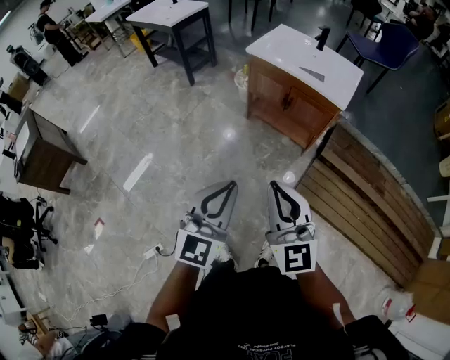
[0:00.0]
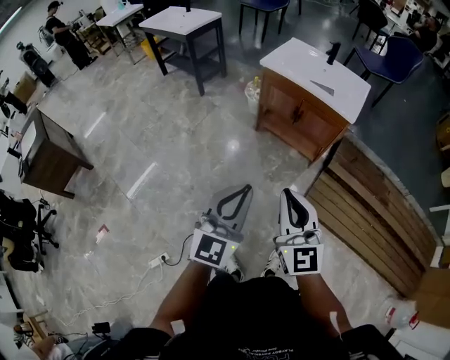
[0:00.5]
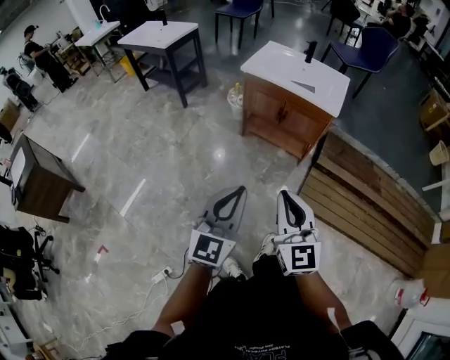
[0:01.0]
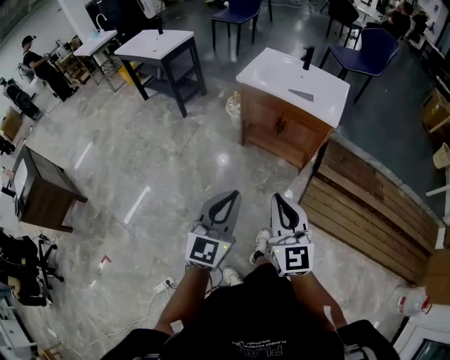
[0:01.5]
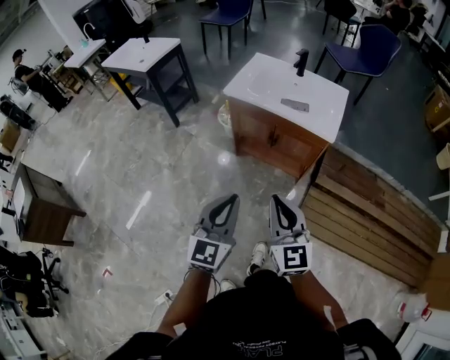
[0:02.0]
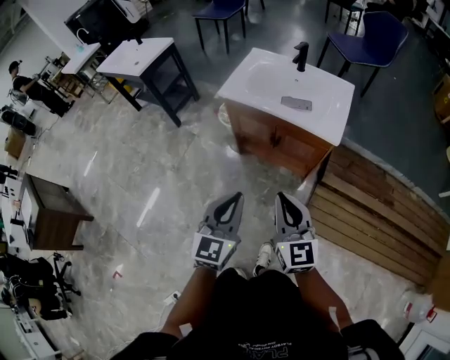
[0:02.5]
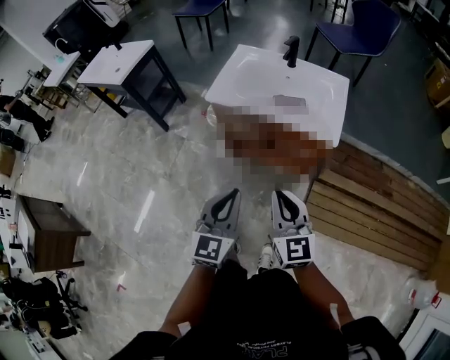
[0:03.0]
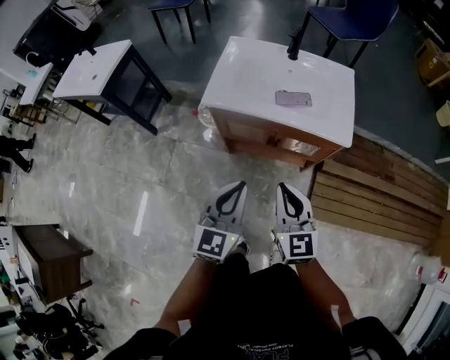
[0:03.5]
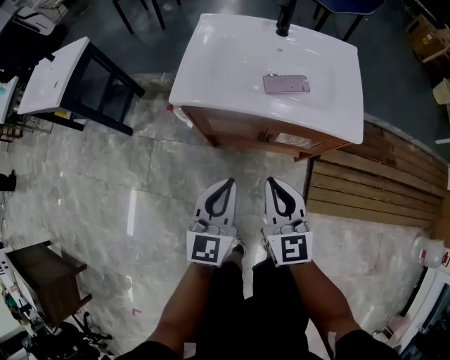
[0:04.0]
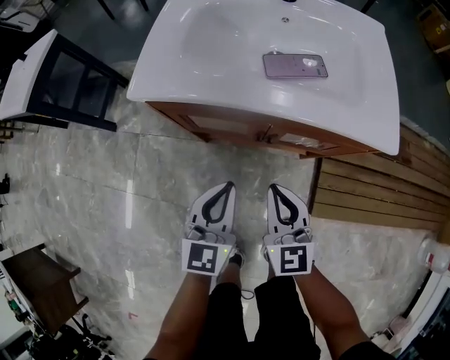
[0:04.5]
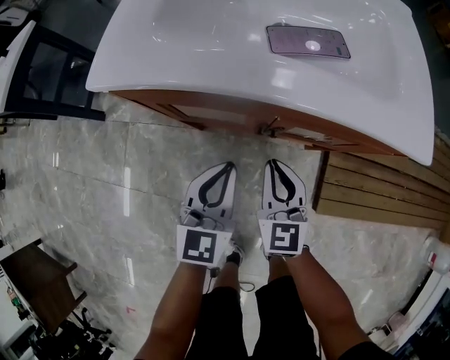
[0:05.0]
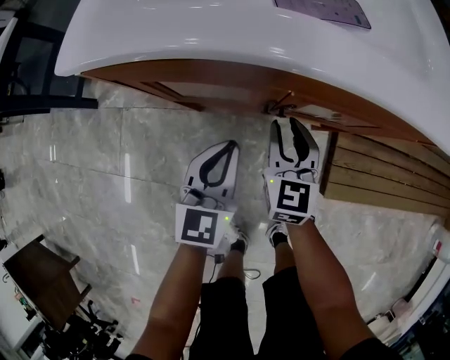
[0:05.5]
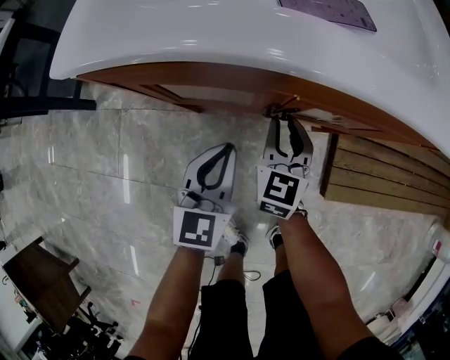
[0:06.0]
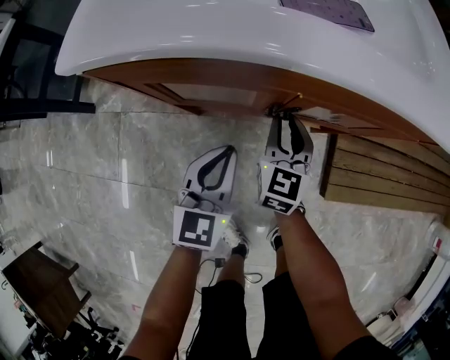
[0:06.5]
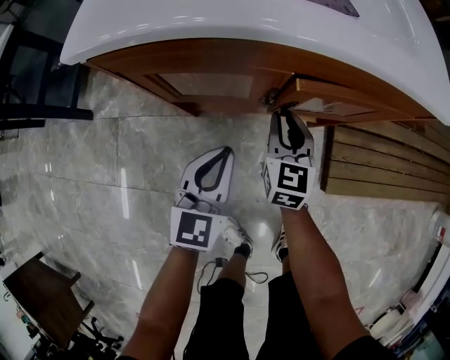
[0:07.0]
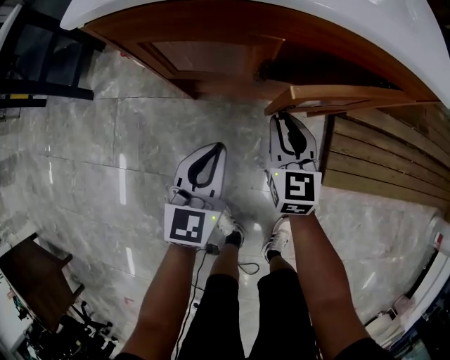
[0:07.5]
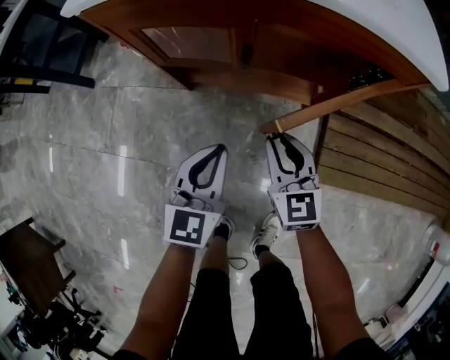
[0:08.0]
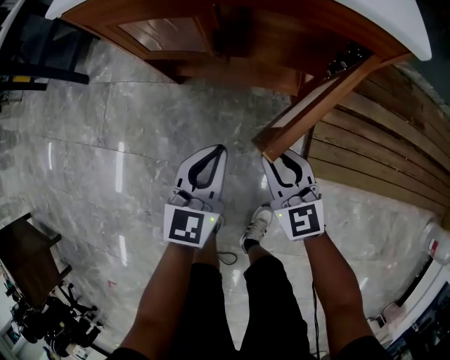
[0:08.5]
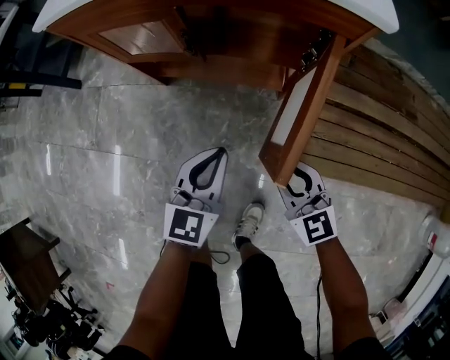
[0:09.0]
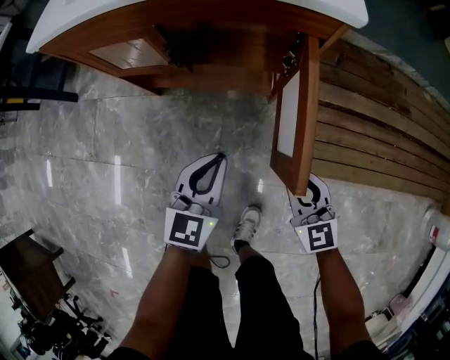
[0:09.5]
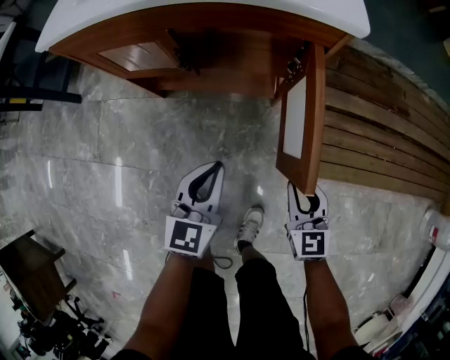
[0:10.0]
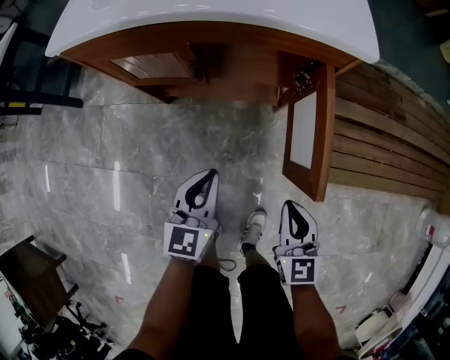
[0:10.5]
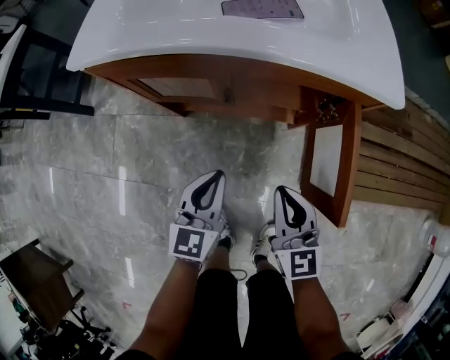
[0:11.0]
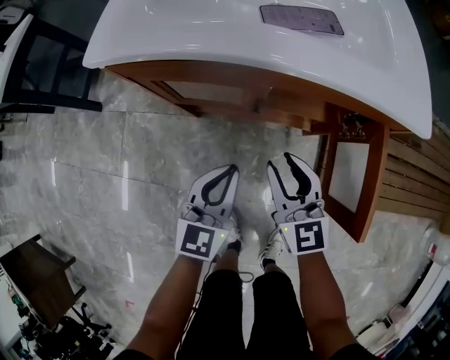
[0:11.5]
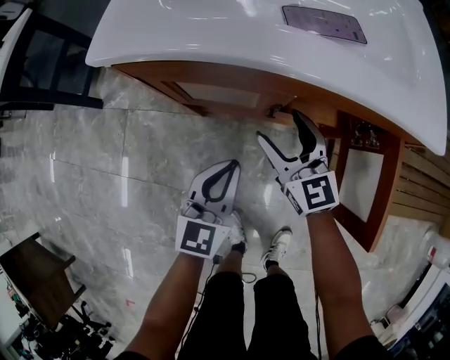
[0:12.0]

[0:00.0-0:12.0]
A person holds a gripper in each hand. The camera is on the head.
0:00.0 to 0:02.0: The grippers both shift forward by approximately 20 cm.
0:02.0 to 0:04.0: Both grippers travel together forward and downward, approximately 35 cm.
0:04.0 to 0:06.0: The right gripper goes roughly 40 cm downward and forward, and rotates about 30 degrees. The left gripper heads downward, covering some 30 cm.
0:06.0 to 0:08.0: The two grippers go approximately 15 cm backward and to the right. The right gripper turns by roughly 20 degrees.
0:08.0 to 0:10.0: The right gripper moves to the right and backward, about 25 cm, while the left gripper heads to the right and backward, covering some 15 cm.
0:10.0 to 0:12.0: The right gripper heads to the left and forward, covering about 40 cm, turns by approximately 20 degrees, and opens. Meanwhile the left gripper is displaced to the left and forward by about 20 cm.

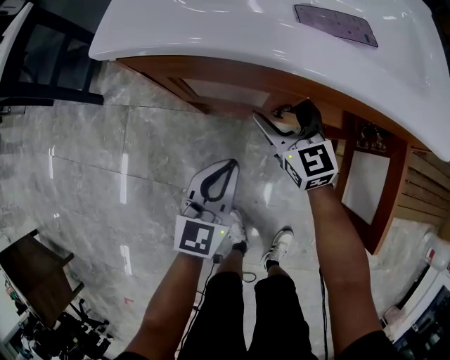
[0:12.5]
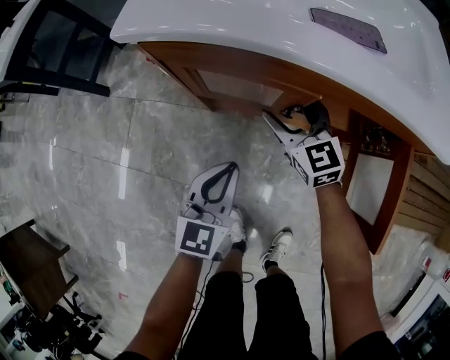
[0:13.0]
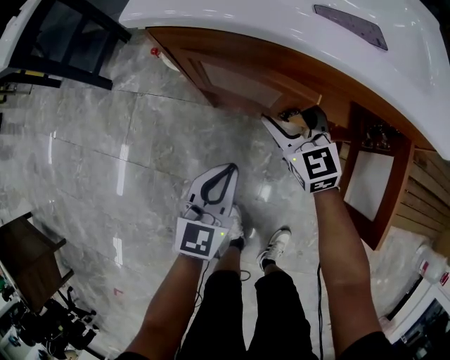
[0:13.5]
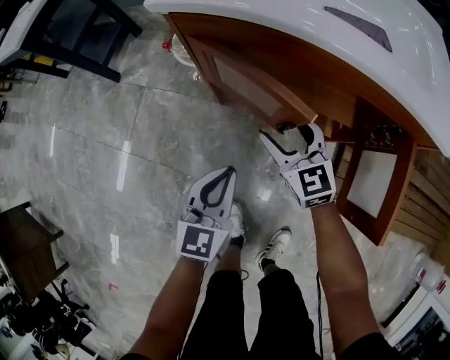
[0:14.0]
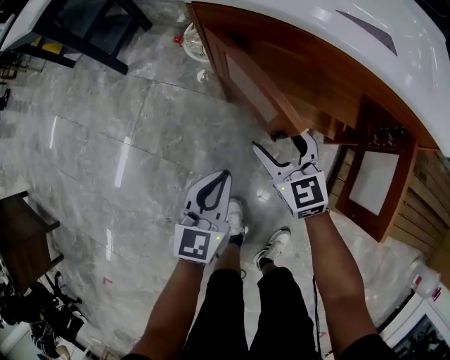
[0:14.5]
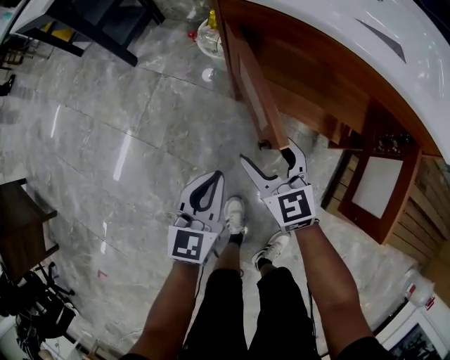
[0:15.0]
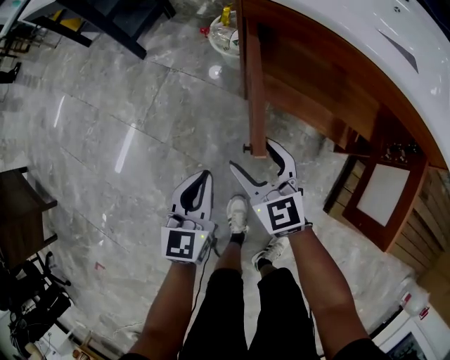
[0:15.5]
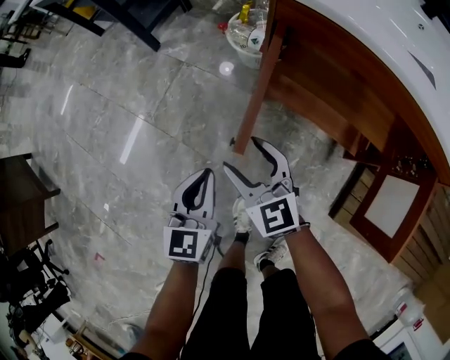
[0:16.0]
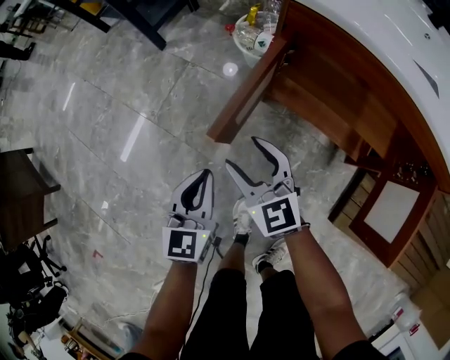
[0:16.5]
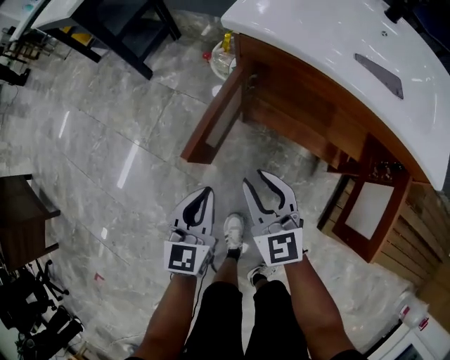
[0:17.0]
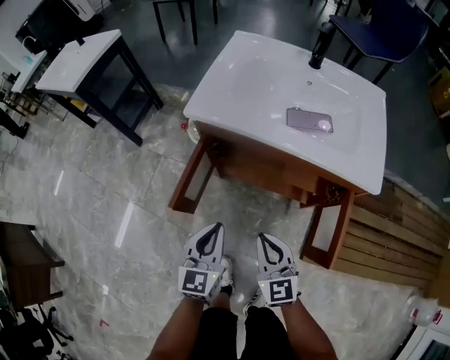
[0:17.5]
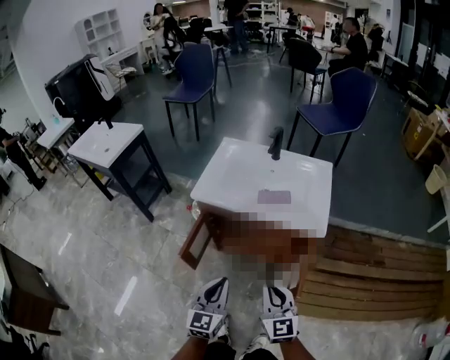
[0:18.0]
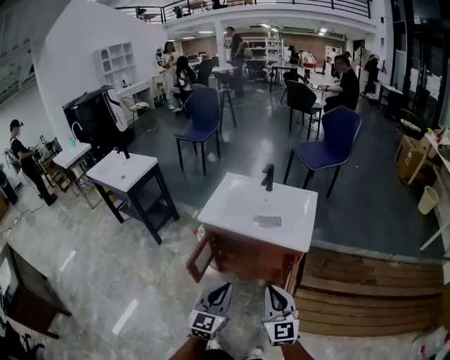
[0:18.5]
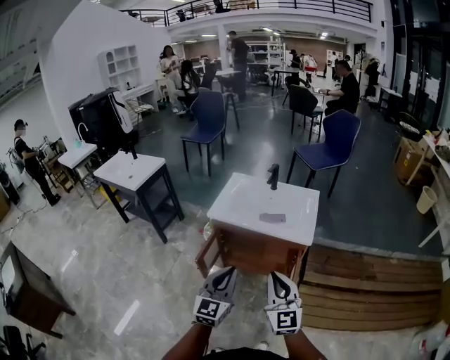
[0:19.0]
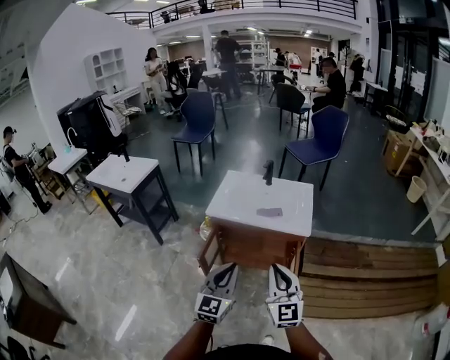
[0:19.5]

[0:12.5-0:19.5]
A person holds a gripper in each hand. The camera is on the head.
0:12.5 to 0:14.5: The grippers both shift backward and to the left by some 15 cm.
0:14.5 to 0:16.0: The grippers both shift to the left by some 15 cm.
0:16.0 to 0:17.5: The left gripper heads to the right and upward, covering some 20 cm, while the right gripper shifts some 25 cm to the right, upward and backward, swivels approximately 30 degrees, and closes up.
0:17.5 to 0:19.5: The two grippers go roughly 40 cm upward and backward. The right gripper swivels roughly 30 degrees; the left gripper swivels roughly 20 degrees.

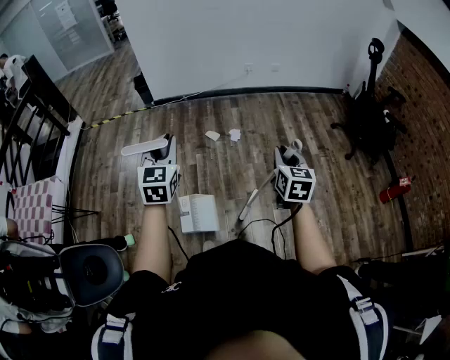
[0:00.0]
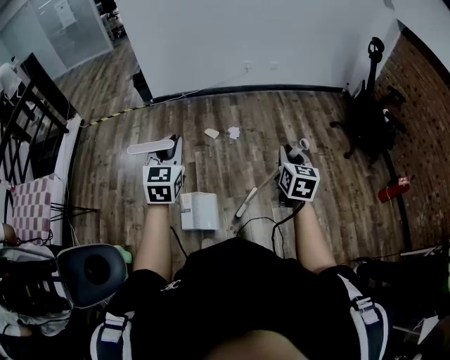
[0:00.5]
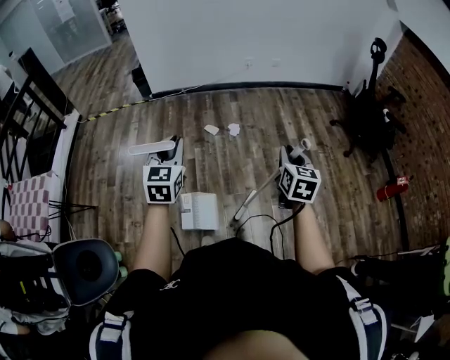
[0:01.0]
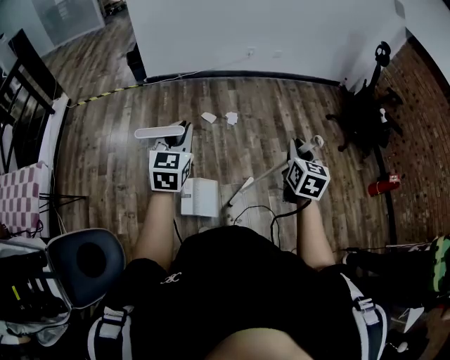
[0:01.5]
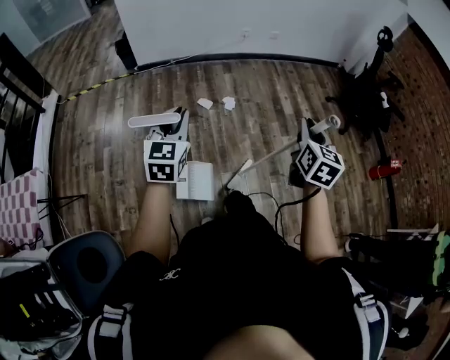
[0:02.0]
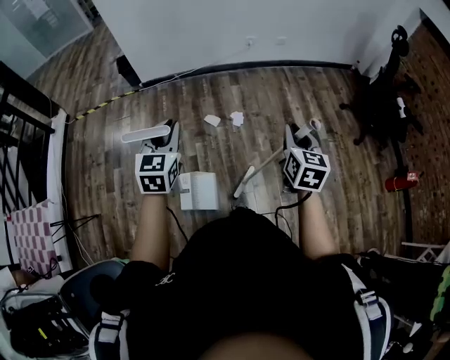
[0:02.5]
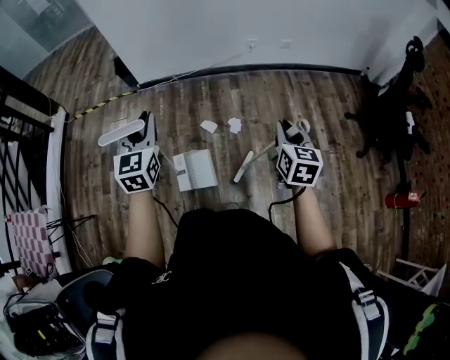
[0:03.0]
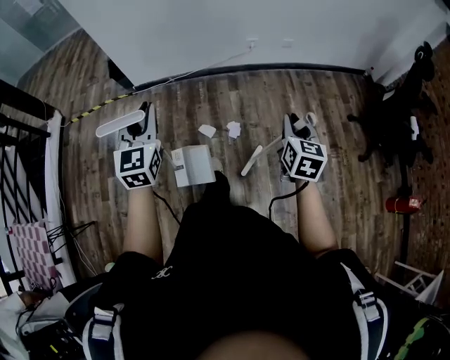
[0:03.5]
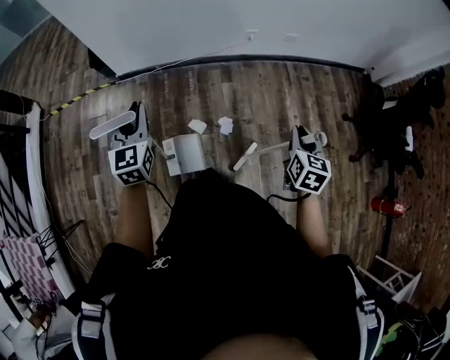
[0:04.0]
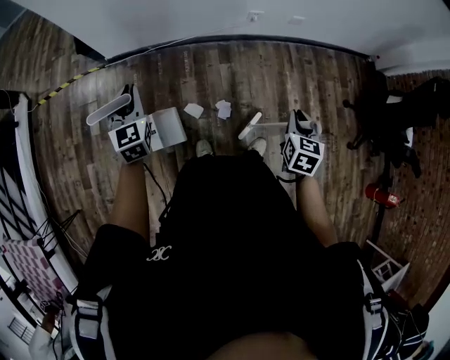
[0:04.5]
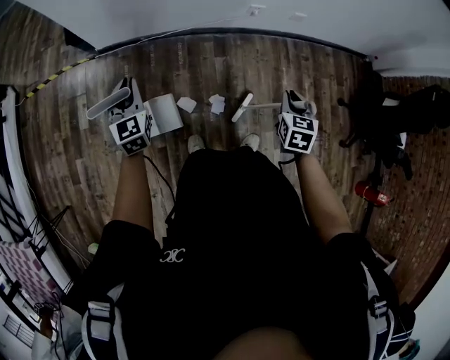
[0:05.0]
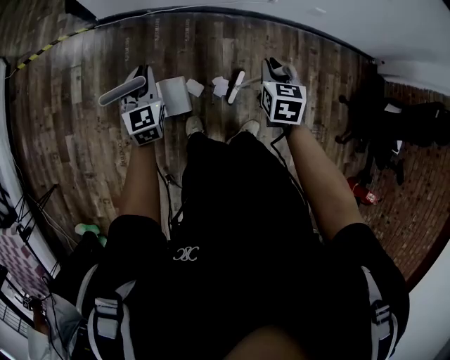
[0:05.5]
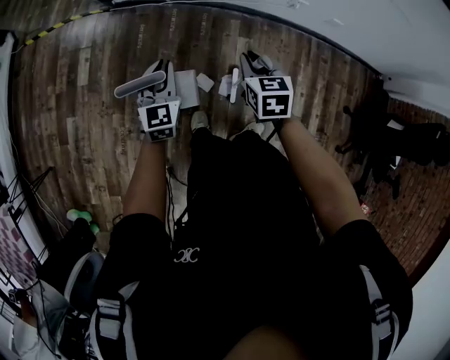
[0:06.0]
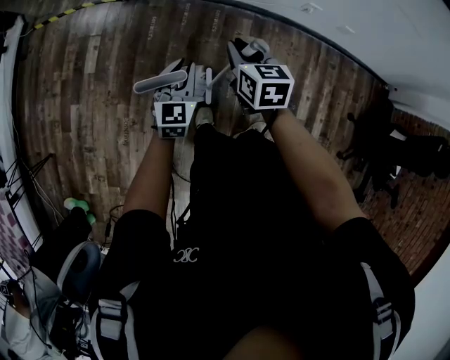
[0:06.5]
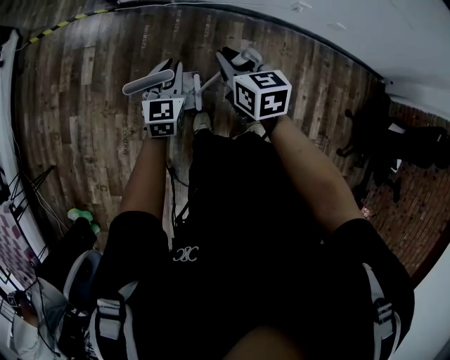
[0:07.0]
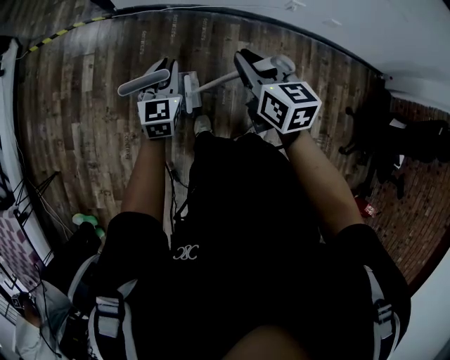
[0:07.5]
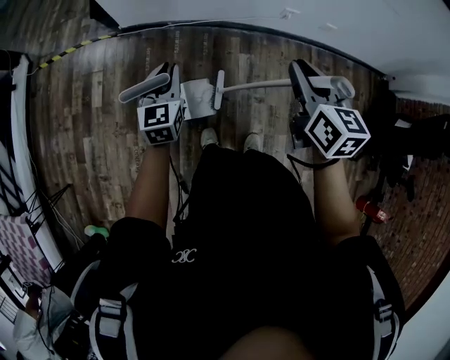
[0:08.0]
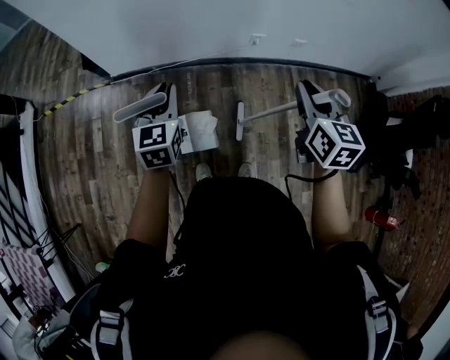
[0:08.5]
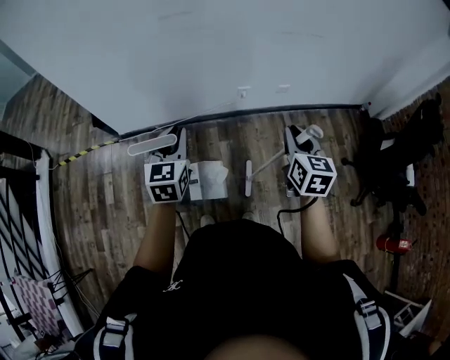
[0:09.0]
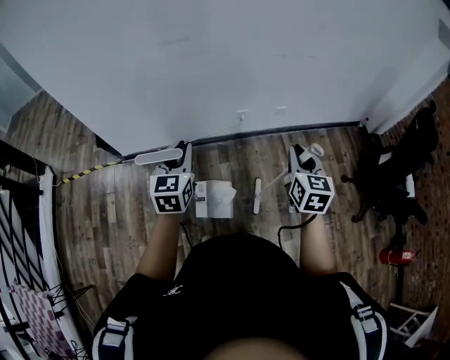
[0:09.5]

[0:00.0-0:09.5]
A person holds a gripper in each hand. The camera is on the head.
0:00.0 to 0:02.0: The left gripper travels forward, to the left and downward by some 15 cm. The right gripper goes roughly 10 cm forward and to the left.
0:02.0 to 0:04.0: The pair of grippers is taken forward, about 50 cm.
0:04.0 to 0:05.5: The left gripper heads downward and forward, covering about 25 cm, while the right gripper is displaced forward, to the left and downward by about 30 cm, and rotates some 30 degrees.
0:05.5 to 0:07.5: The right gripper moves to the left and upward, about 20 cm, and changes its angle by about 30 degrees.
0:07.5 to 0:09.5: The left gripper moves approximately 35 cm, while the right gripper moves approximately 40 cm, and swivels approximately 40 degrees.
